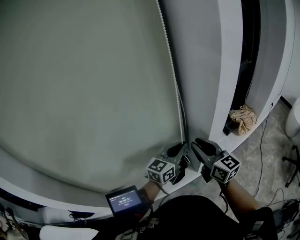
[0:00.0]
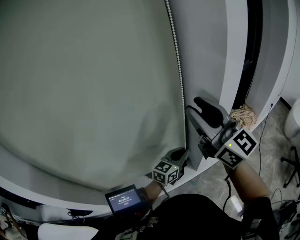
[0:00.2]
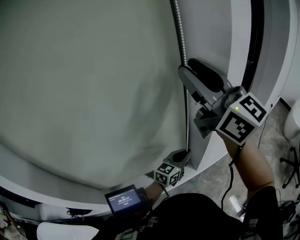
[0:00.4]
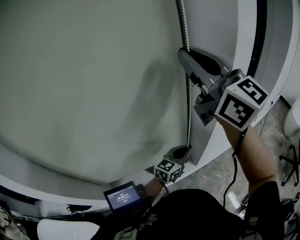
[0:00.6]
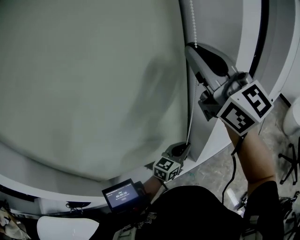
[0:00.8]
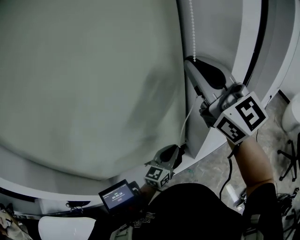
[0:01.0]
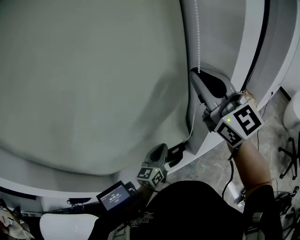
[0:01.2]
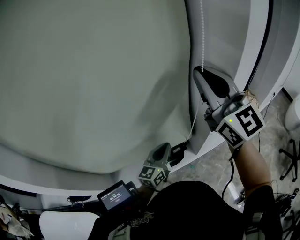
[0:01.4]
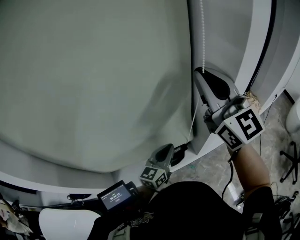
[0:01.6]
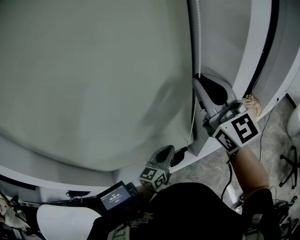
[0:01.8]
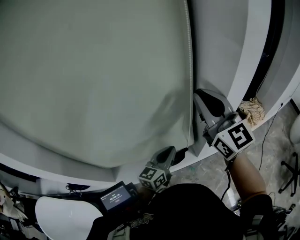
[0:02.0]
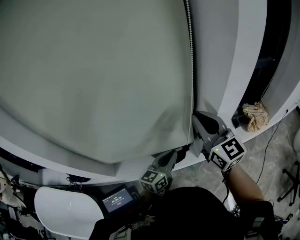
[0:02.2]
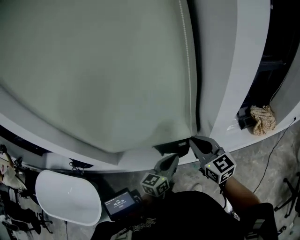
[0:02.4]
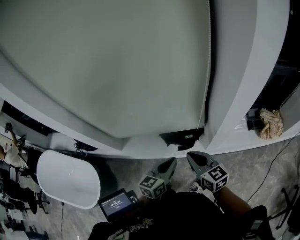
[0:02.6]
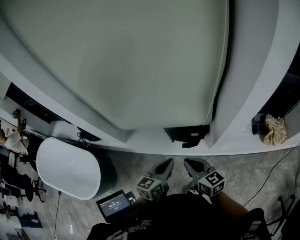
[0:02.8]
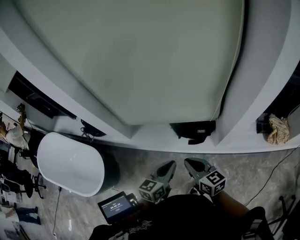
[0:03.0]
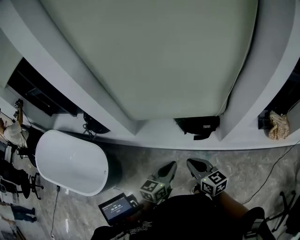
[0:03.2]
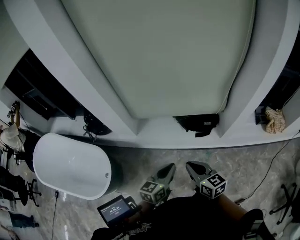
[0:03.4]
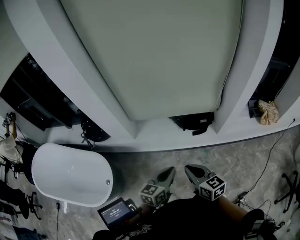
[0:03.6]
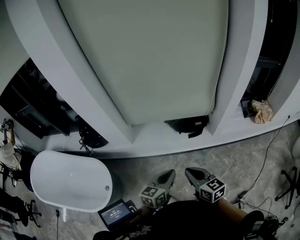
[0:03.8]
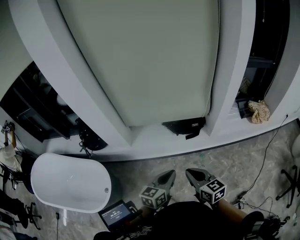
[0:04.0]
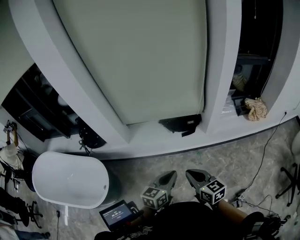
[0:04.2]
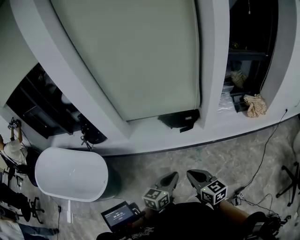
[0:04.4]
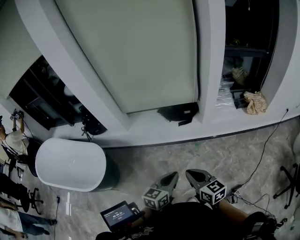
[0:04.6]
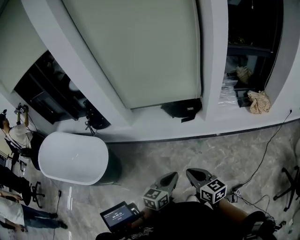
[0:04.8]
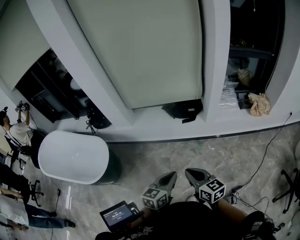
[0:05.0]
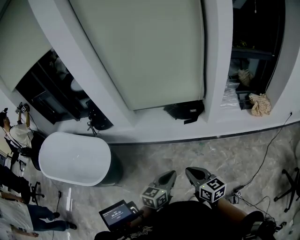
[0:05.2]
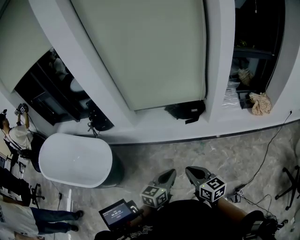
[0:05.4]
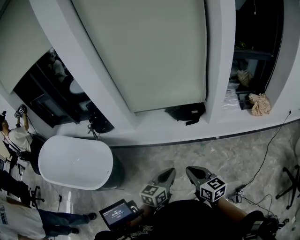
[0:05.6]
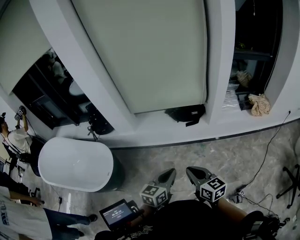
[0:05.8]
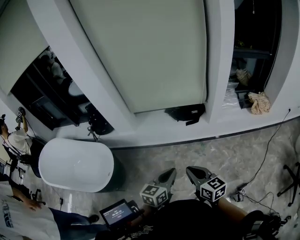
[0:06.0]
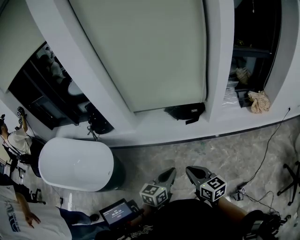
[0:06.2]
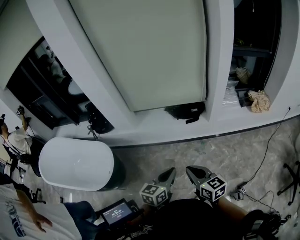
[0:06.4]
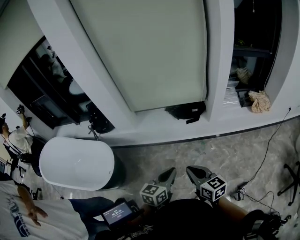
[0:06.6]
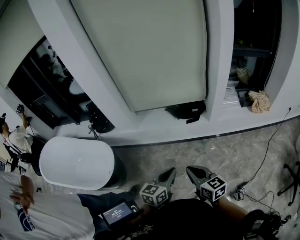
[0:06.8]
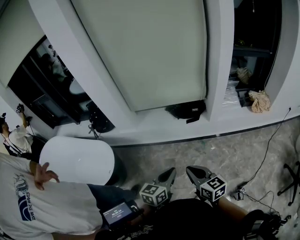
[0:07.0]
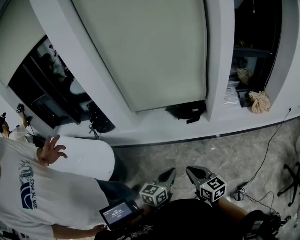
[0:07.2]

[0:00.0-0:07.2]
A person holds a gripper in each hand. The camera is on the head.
0:00.0 to 0:01.4: The right gripper shifts approximately 25 cm upward, changes its angle by roughly 30 degrees, and closes, while the left gripper shifts roughly 10 cm to the left, backward and downward.
0:01.4 to 0:02.8: The left gripper moves roughly 20 cm, and swivels some 30 degrees. Meanwhile the right gripper goes some 40 cm downward, and angles its fingers downward, by roughly 30 degrees.
0:02.8 to 0:04.4: The two grippers go about 30 cm backward.
0:04.4 to 0:05.8: The right gripper changes place by about 5 cm, while the left gripper heads to the left, covering about 5 cm.
0:05.8 to 0:07.2: The grippers make only small movements.

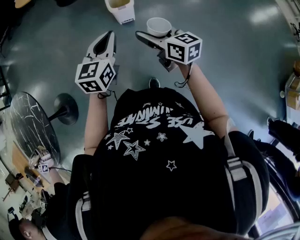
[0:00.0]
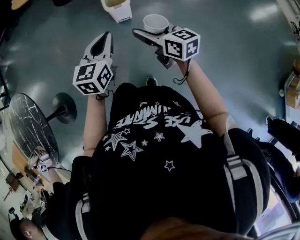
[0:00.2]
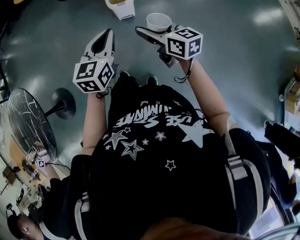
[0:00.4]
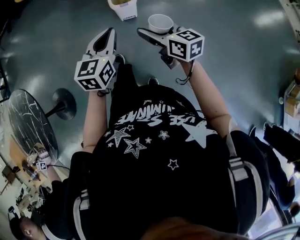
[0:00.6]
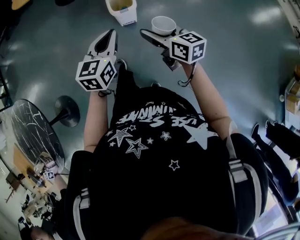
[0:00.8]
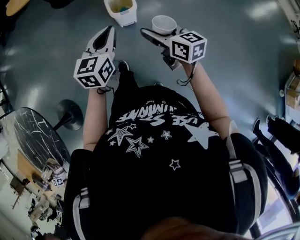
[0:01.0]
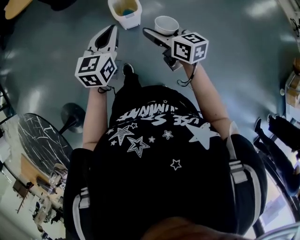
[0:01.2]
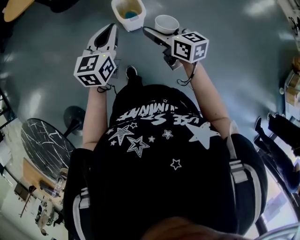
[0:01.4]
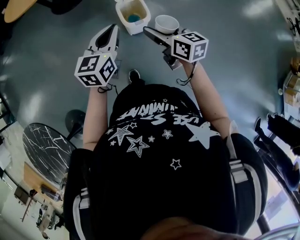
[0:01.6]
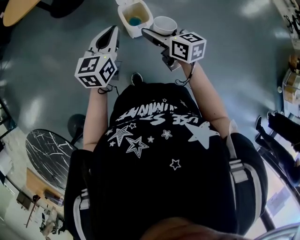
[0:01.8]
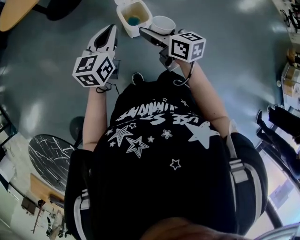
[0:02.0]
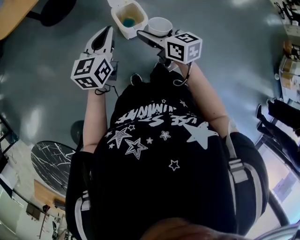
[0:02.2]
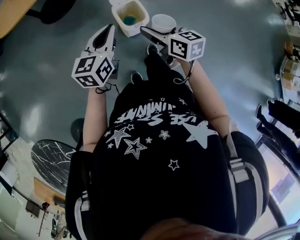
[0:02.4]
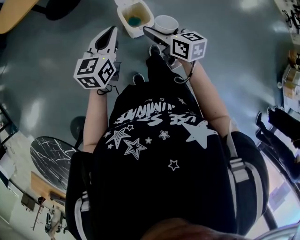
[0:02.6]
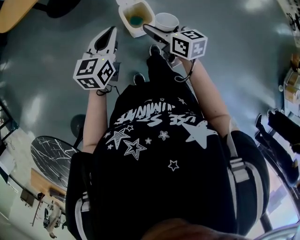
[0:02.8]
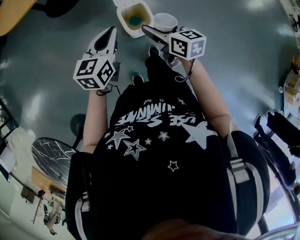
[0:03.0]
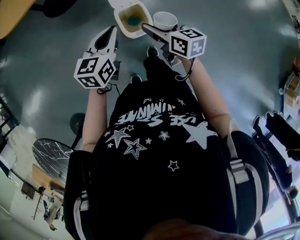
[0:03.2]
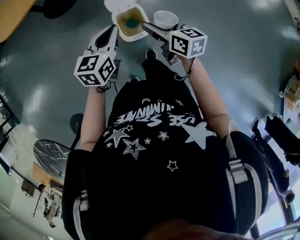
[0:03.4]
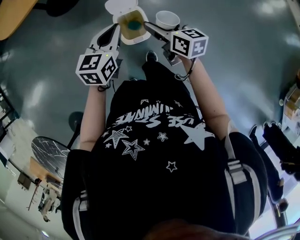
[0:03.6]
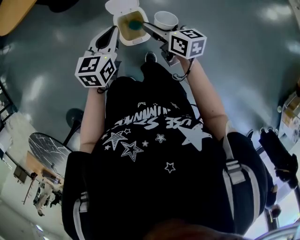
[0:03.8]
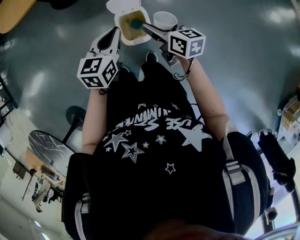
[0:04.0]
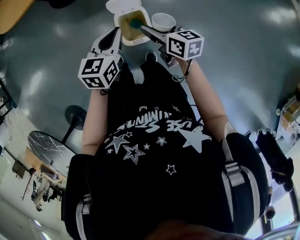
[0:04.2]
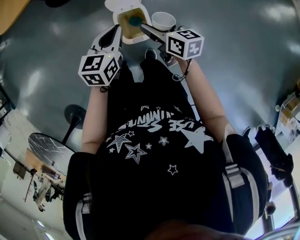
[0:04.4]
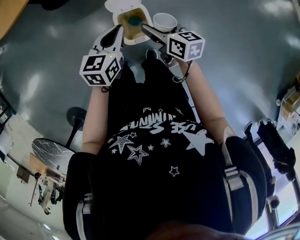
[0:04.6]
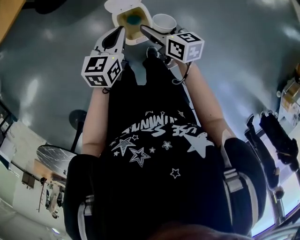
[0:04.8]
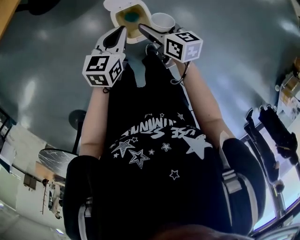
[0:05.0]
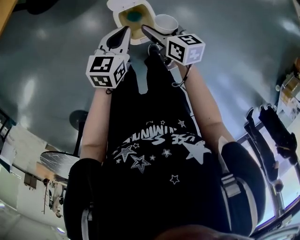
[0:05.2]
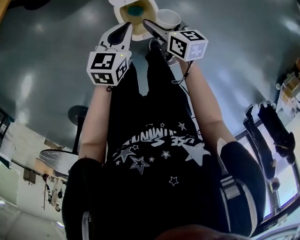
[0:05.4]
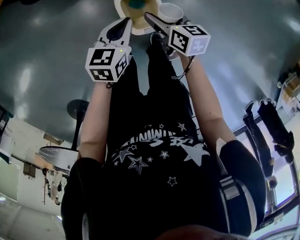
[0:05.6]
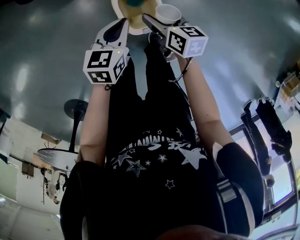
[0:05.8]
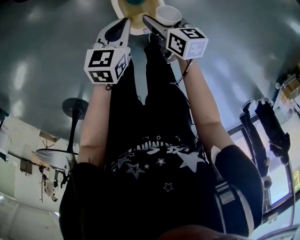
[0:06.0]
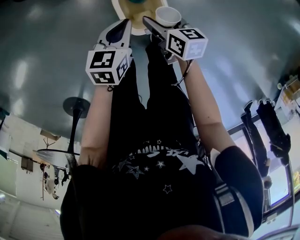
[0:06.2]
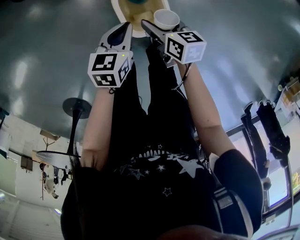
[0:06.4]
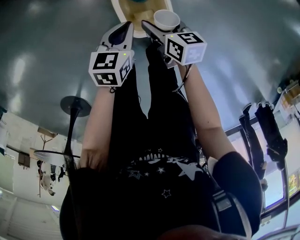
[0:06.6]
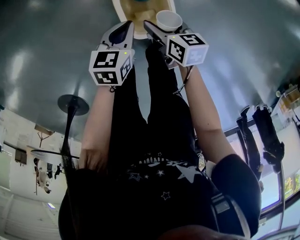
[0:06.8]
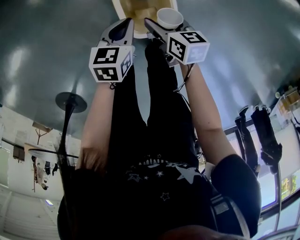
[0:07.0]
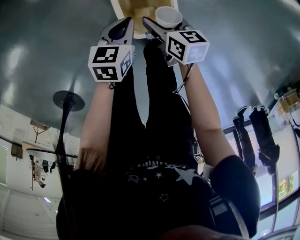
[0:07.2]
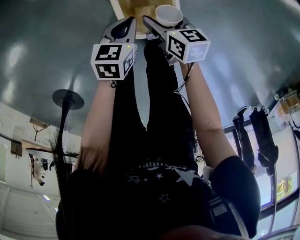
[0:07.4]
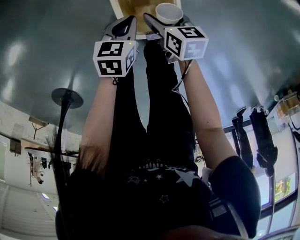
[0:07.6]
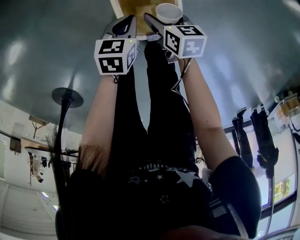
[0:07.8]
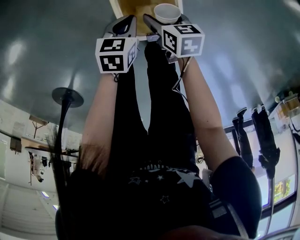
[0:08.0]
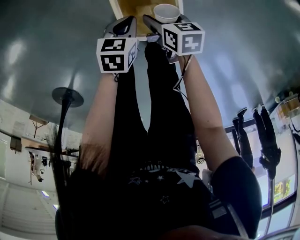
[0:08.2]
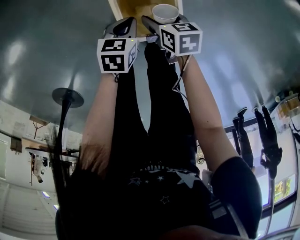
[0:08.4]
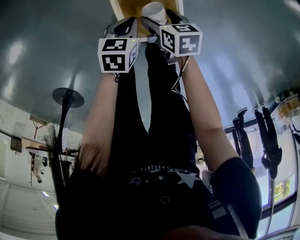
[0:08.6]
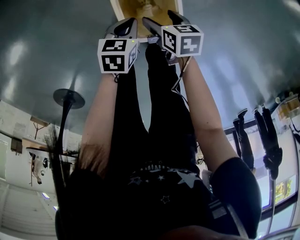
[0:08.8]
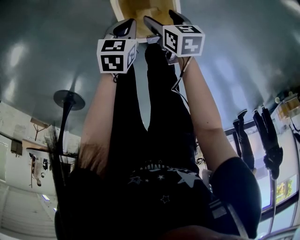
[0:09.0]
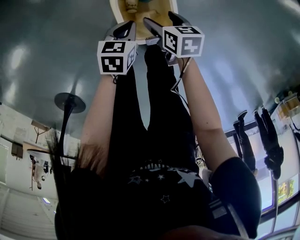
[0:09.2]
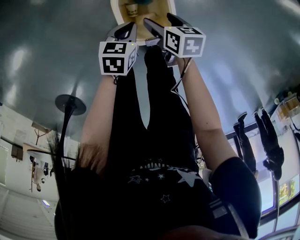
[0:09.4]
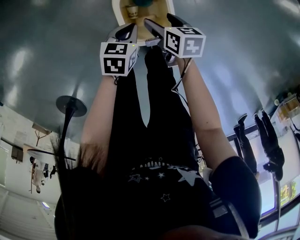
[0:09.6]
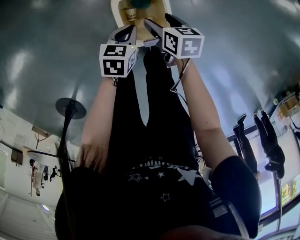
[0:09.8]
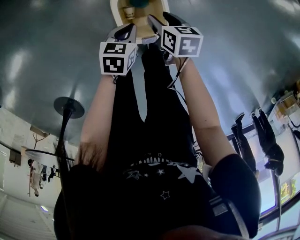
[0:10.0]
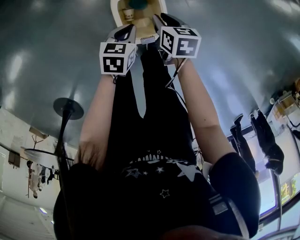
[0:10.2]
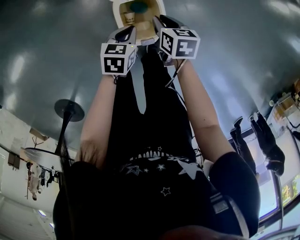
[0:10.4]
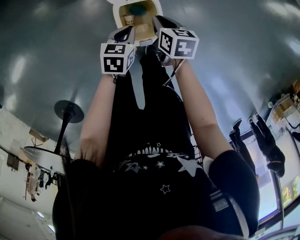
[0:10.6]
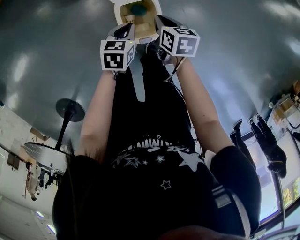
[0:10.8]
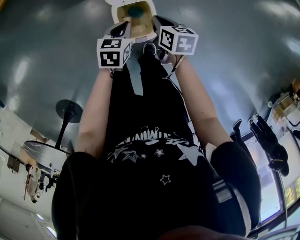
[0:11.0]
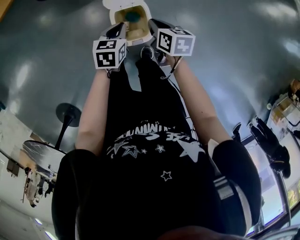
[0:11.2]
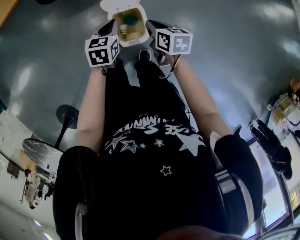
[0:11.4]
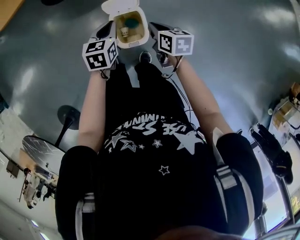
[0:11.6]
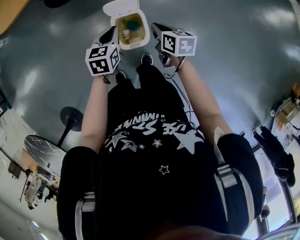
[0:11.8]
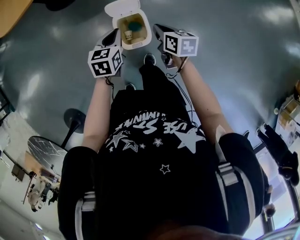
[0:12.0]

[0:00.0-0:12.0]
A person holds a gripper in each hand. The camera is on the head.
0:00.0 to 0:01.6: The two grippers go roughly 25 cm forward.
0:01.6 to 0:03.0: Both grippers move forward, some 10 cm.
0:03.0 to 0:04.4: Both grippers travel together forward, to the right and downward, roughly 15 cm.
0:04.4 to 0:06.0: Both grippers travel together downward, some 15 cm.
0:06.0 to 0:07.6: The two grippers go approximately 15 cm downward.
0:07.6 to 0:09.0: The grippers move only a little.
0:09.0 to 0:10.4: The grippers both shift upward by approximately 5 cm. The right gripper closes up.
0:10.4 to 0:12.0: The grippers both shift upward by approximately 20 cm.

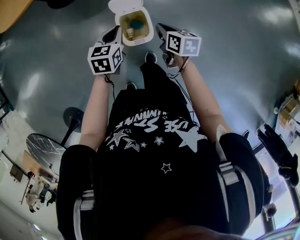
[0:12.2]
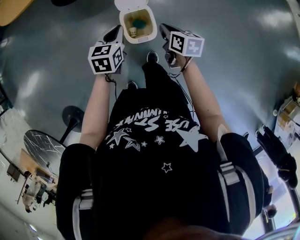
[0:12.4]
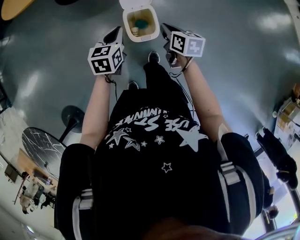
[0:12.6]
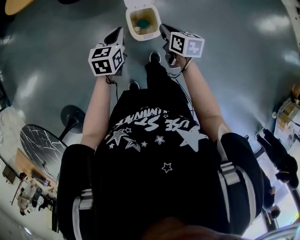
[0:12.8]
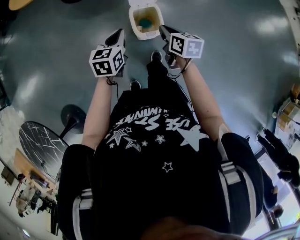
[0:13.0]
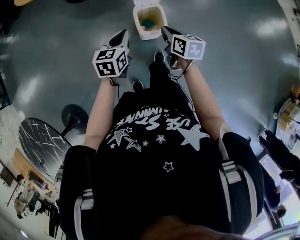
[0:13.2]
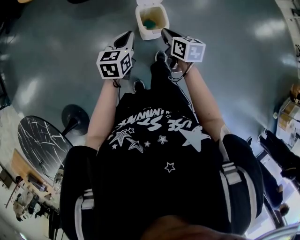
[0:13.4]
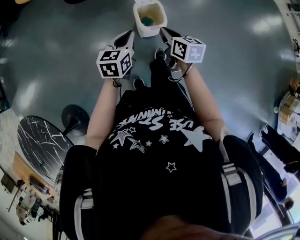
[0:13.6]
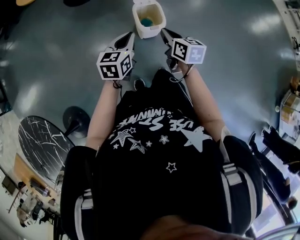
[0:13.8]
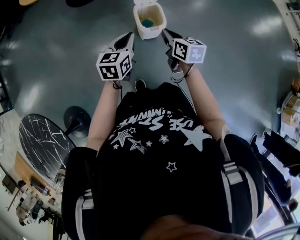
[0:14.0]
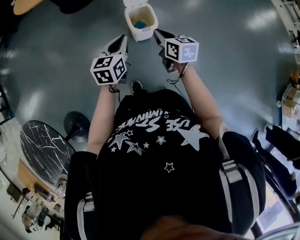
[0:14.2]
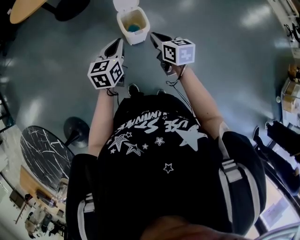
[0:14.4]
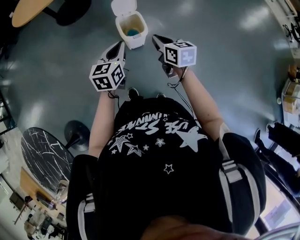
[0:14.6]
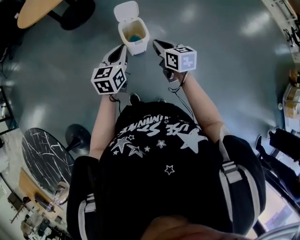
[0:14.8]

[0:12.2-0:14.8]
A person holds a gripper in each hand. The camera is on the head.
0:12.2 to 0:13.4: The right gripper is displaced backward, to the left and upward by approximately 20 cm. Meanwhile the left gripper travels backward and to the left by about 20 cm.
0:13.4 to 0:14.8: The grippers both shift backward, to the right and upward by approximately 15 cm.

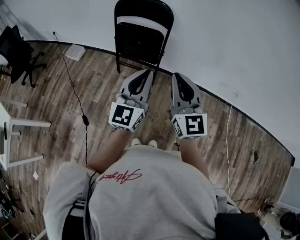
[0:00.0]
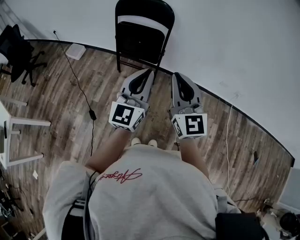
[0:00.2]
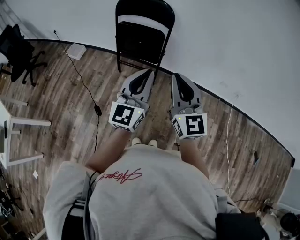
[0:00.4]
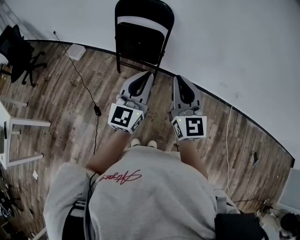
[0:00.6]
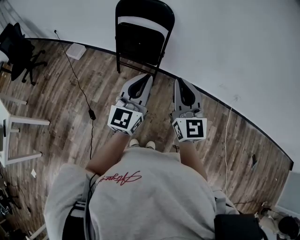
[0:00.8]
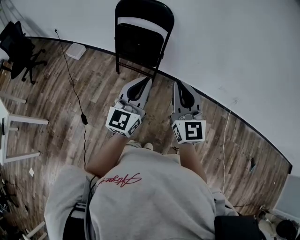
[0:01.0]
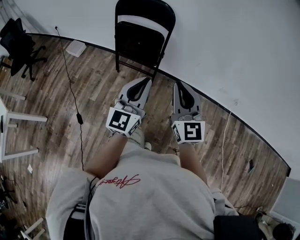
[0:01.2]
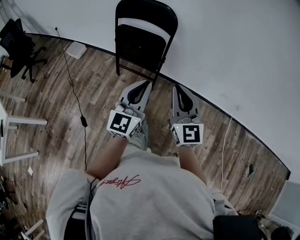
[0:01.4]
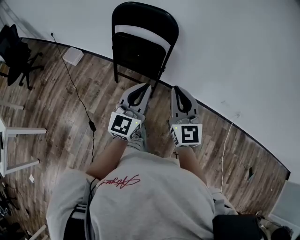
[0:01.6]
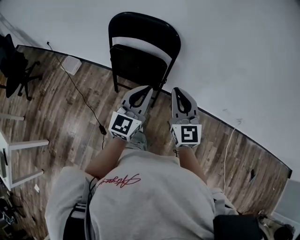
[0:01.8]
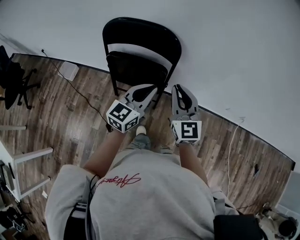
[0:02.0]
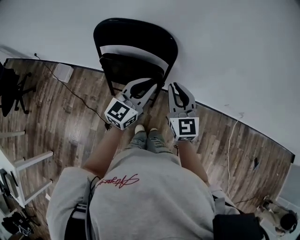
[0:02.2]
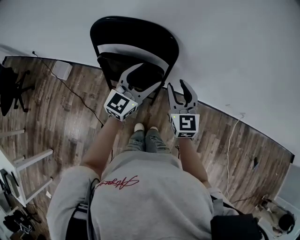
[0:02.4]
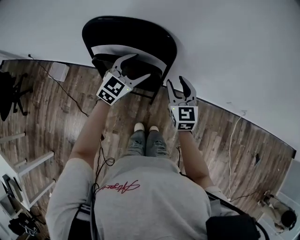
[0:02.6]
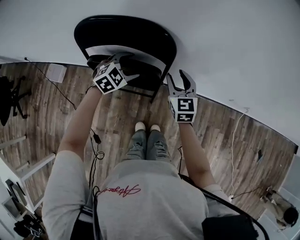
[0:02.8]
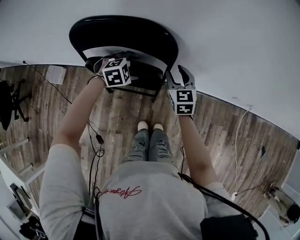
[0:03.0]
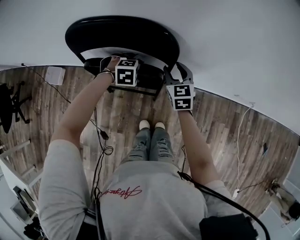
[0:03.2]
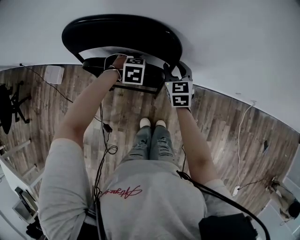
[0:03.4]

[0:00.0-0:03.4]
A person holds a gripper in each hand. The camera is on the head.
0:00.0 to 0:01.6: The grippers both shift forward and downward by roughly 15 cm.
0:01.6 to 0:03.4: The right gripper changes place by some 40 cm, angles its fingers downward, by roughly 30 degrees, and opens. The left gripper changes place by some 40 cm, angles its fingers downward, by some 80 degrees, and opens its fingers.
